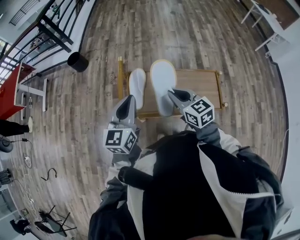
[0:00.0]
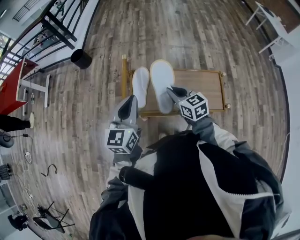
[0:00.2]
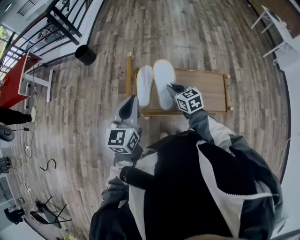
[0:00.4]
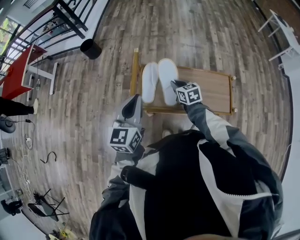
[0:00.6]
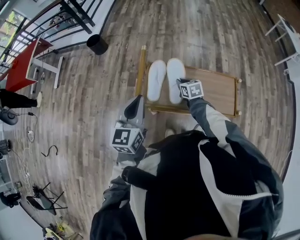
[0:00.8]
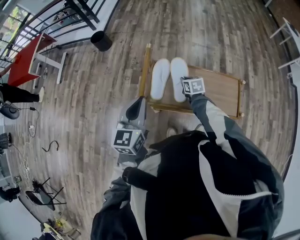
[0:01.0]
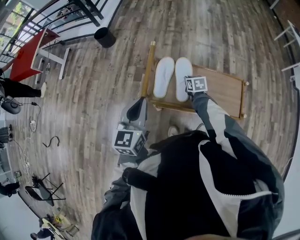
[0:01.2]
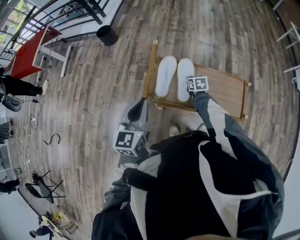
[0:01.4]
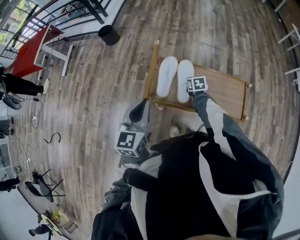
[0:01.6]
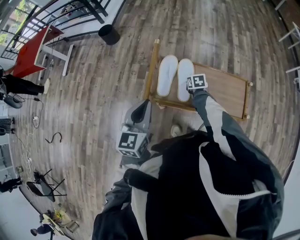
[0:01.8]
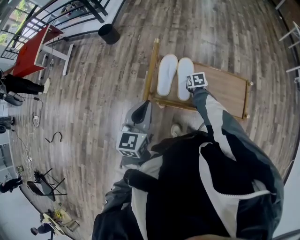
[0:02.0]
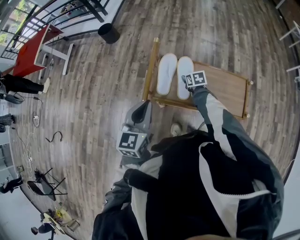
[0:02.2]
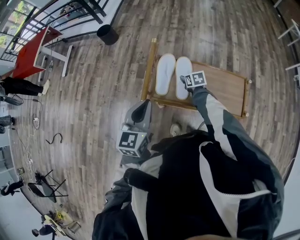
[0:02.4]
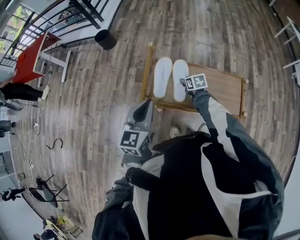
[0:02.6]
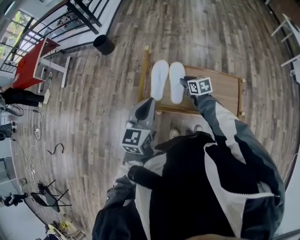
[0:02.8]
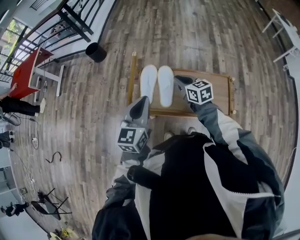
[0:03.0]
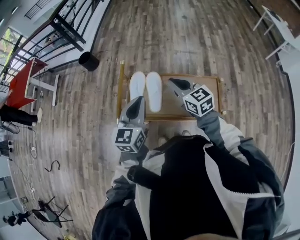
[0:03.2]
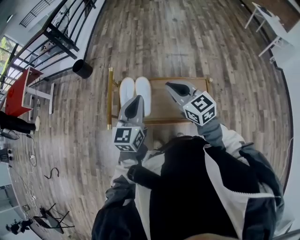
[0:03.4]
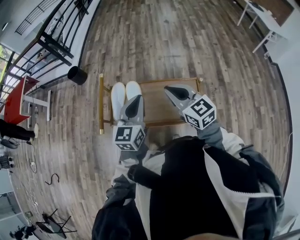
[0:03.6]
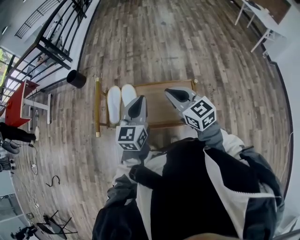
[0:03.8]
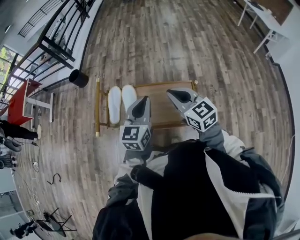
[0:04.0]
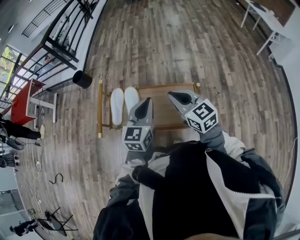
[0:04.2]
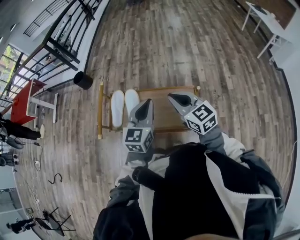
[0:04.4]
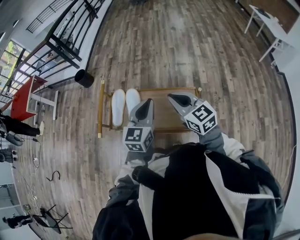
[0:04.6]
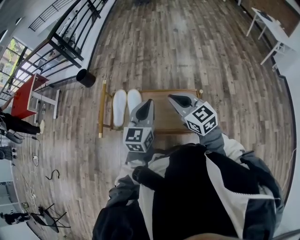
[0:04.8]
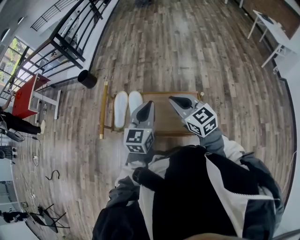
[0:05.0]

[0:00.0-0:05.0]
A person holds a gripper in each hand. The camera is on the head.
0:00.0 to 0:01.6: The right gripper shifts some 30 cm downward and forward, and points its fingers about 30 degrees further downward. The left gripper travels to the left by about 5 cm.
0:01.6 to 0:03.4: The right gripper travels upward by roughly 35 cm, points its fingers approximately 40 degrees further upward, and opens and closes again, while the left gripper goes about 20 cm to the right.
0:03.4 to 0:05.0: The two grippers go approximately 10 cm to the right.

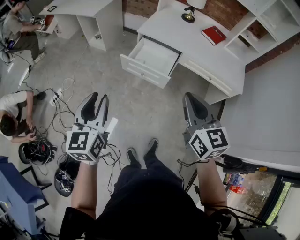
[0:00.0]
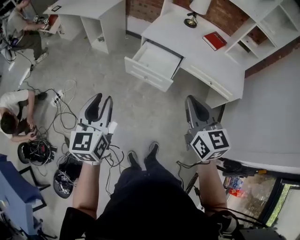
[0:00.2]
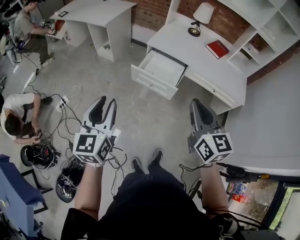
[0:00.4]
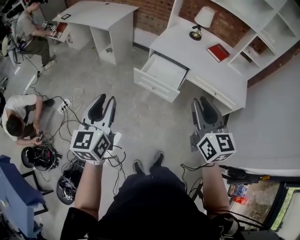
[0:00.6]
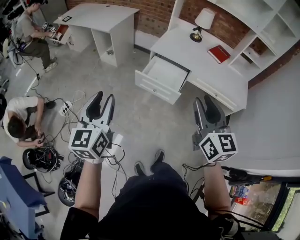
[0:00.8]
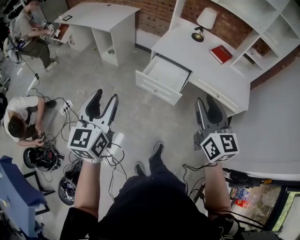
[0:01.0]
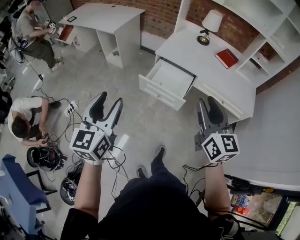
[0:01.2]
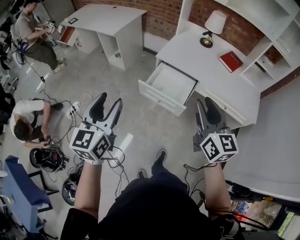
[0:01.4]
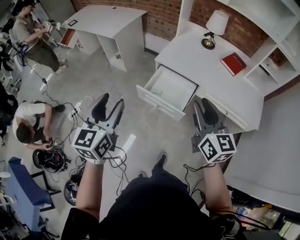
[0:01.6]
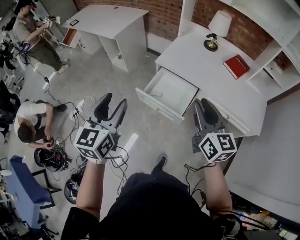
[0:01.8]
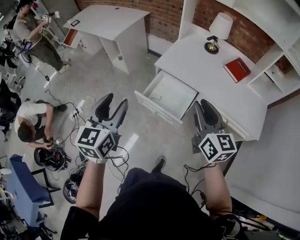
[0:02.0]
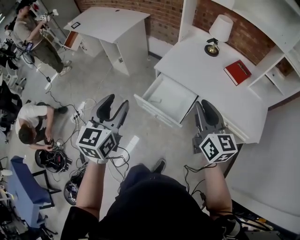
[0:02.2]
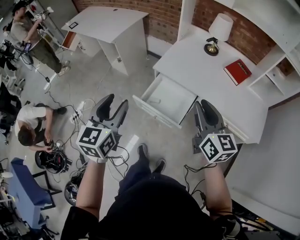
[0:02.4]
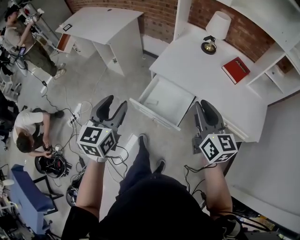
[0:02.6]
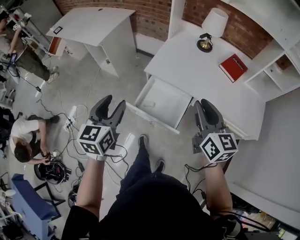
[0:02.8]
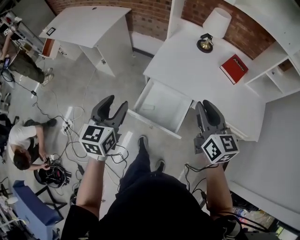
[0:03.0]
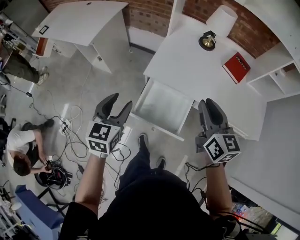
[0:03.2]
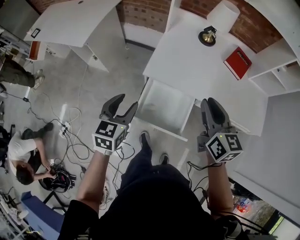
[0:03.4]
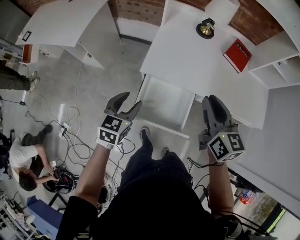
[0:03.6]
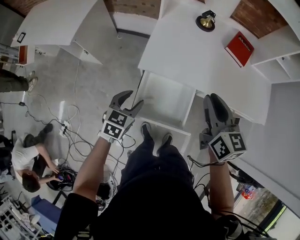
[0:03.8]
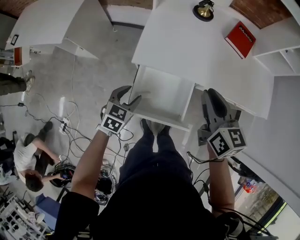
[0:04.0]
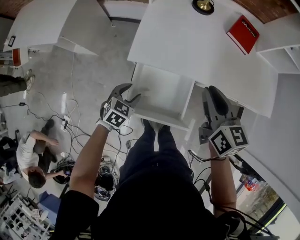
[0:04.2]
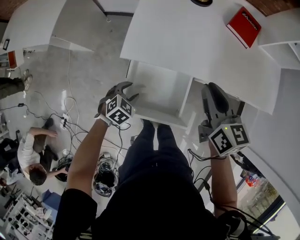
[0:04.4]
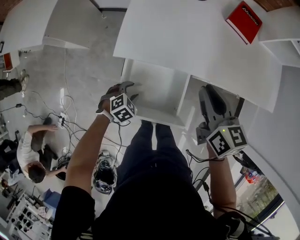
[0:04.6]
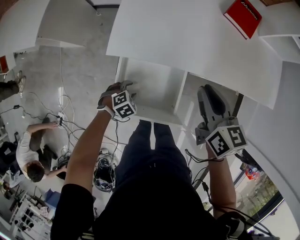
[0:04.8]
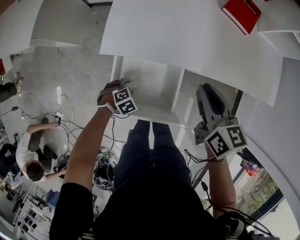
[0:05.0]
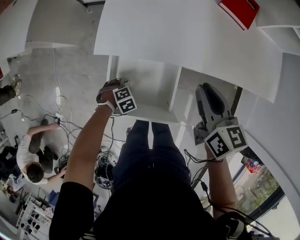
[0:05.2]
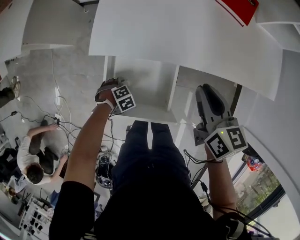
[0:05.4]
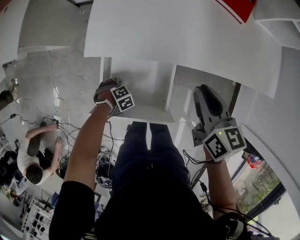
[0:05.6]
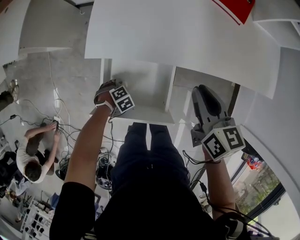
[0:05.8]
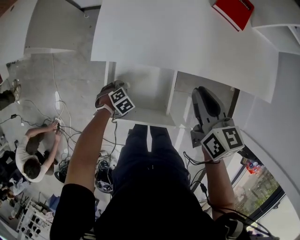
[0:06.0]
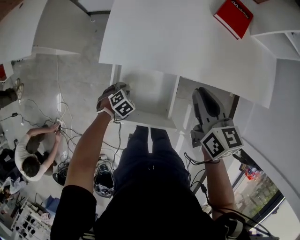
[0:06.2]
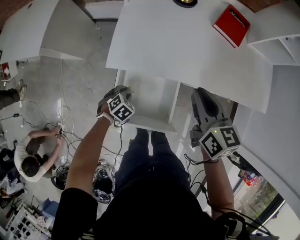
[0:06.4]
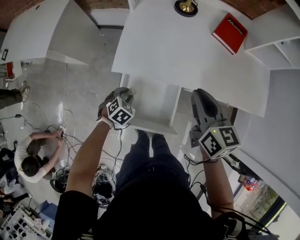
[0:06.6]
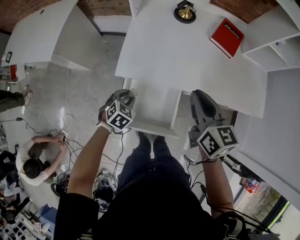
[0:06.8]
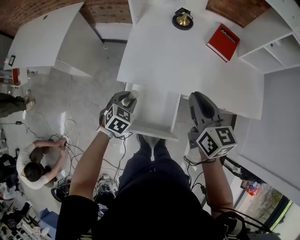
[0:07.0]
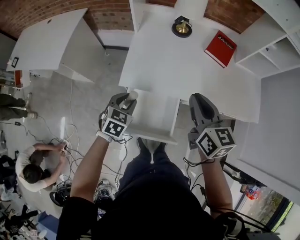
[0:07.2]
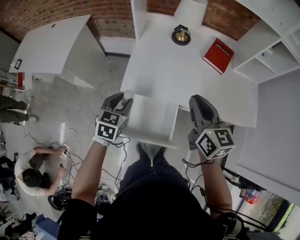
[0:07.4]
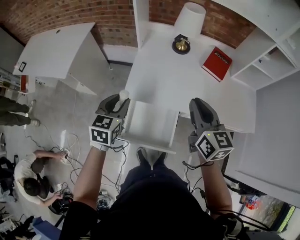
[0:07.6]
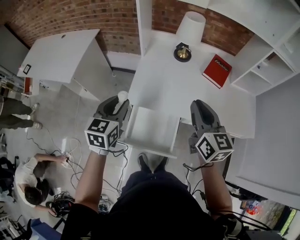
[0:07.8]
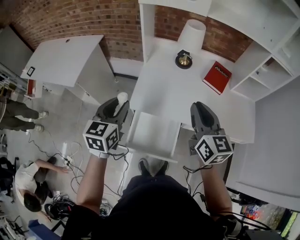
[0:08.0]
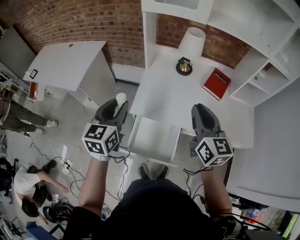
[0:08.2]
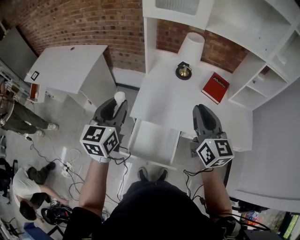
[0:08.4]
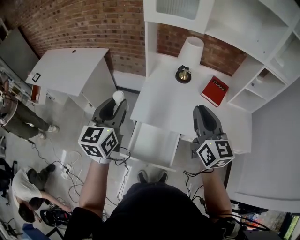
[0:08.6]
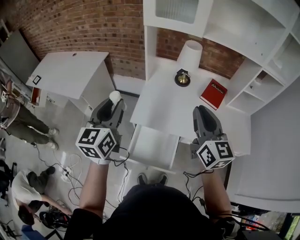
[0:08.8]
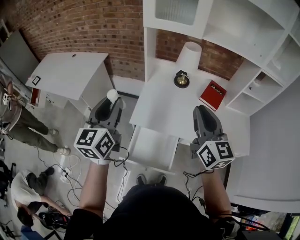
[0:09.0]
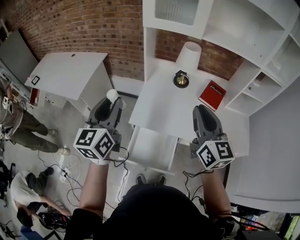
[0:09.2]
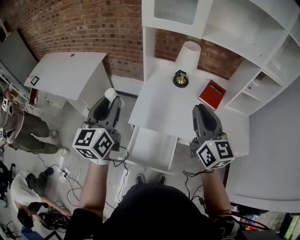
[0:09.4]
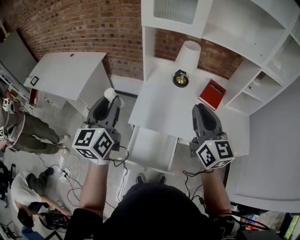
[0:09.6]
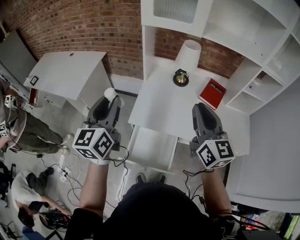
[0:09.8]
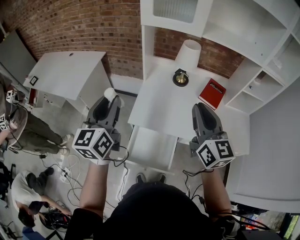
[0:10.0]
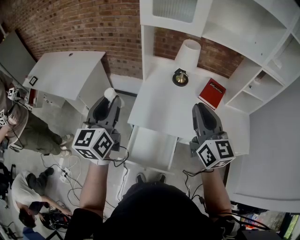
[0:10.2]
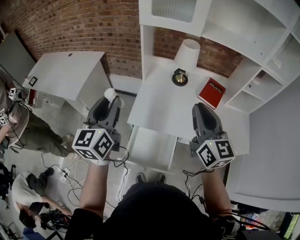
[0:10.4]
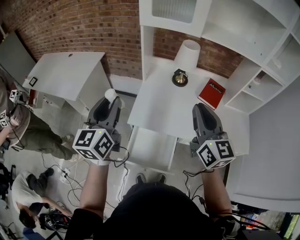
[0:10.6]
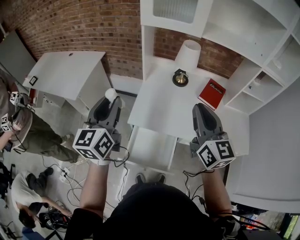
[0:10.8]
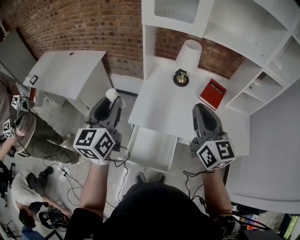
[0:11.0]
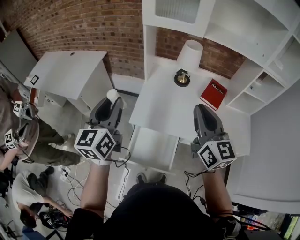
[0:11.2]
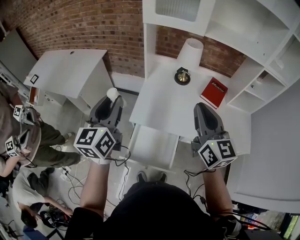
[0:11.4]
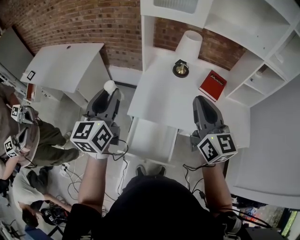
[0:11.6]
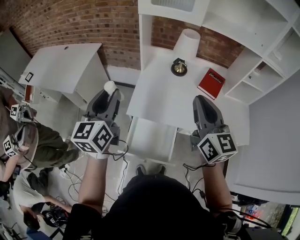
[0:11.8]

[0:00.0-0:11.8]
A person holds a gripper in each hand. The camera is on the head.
0:00.0 to 0:01.4: The right gripper heads forward, covering roughly 10 cm, and opens. The left gripper heads forward and upward, covering about 10 cm, and opens.
0:01.4 to 0:03.0: Both grippers move forward, some 25 cm.
0:03.0 to 0:04.4: The right gripper shifts some 20 cm downward and forward, while the left gripper shifts approximately 35 cm downward and forward, and tips its fingers downward by roughly 40 degrees.
0:04.4 to 0:06.0: The left gripper is displaced downward by about 15 cm, and changes its angle by roughly 20 degrees; the right gripper goes roughly 5 cm downward.
0:06.0 to 0:07.4: The right gripper heads upward, covering about 20 cm. The left gripper travels upward by roughly 35 cm, and angles its fingers upward, by approximately 50 degrees.
0:07.4 to 0:08.8: The right gripper is displaced upward by approximately 15 cm. Meanwhile the left gripper moves upward, approximately 25 cm, and tips its fingers upward by approximately 30 degrees.
0:08.8 to 0:11.8: The grippers make only small movements.

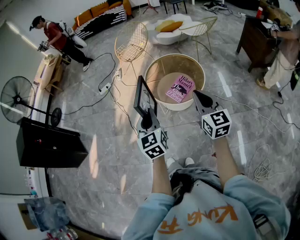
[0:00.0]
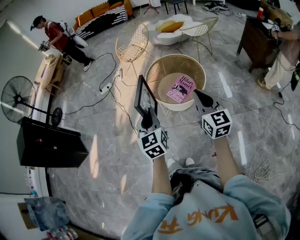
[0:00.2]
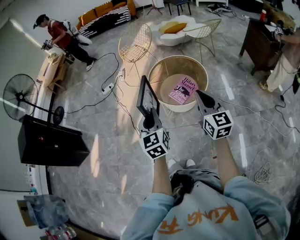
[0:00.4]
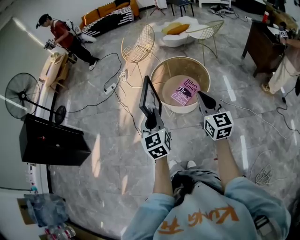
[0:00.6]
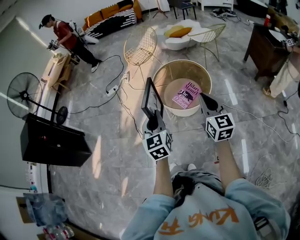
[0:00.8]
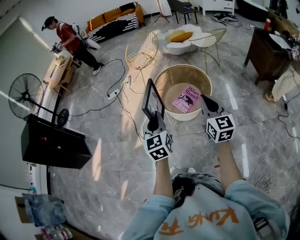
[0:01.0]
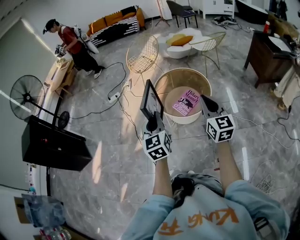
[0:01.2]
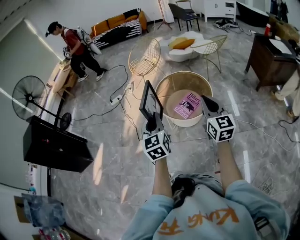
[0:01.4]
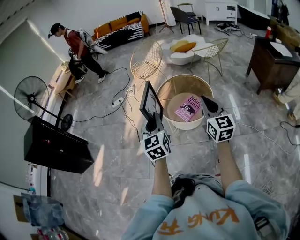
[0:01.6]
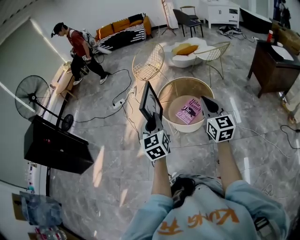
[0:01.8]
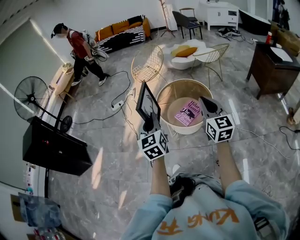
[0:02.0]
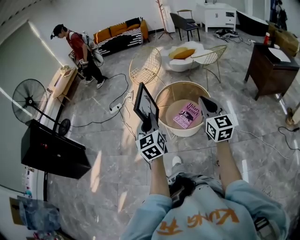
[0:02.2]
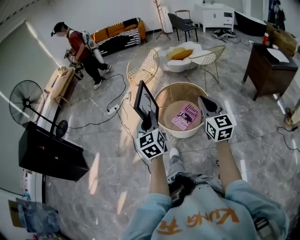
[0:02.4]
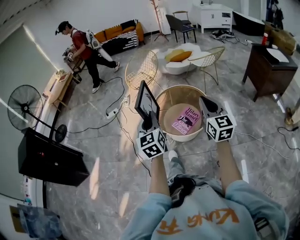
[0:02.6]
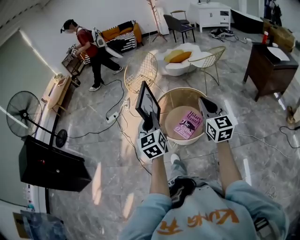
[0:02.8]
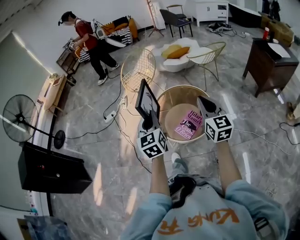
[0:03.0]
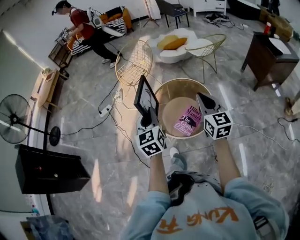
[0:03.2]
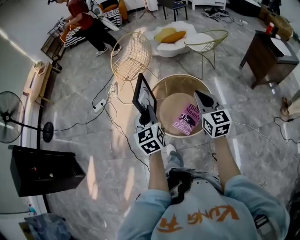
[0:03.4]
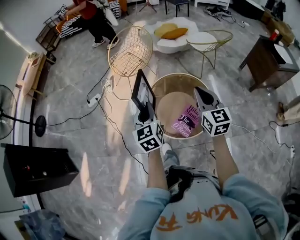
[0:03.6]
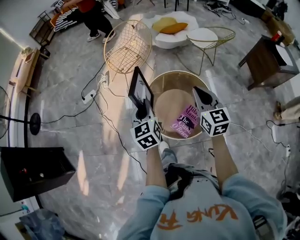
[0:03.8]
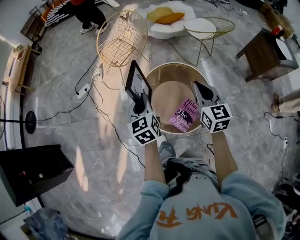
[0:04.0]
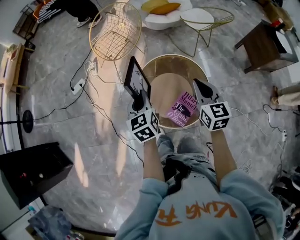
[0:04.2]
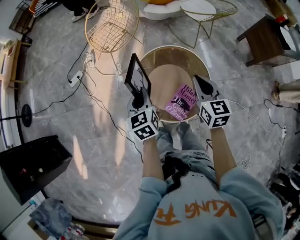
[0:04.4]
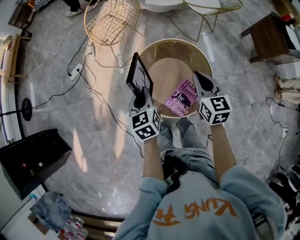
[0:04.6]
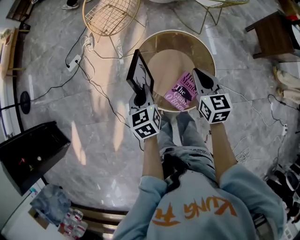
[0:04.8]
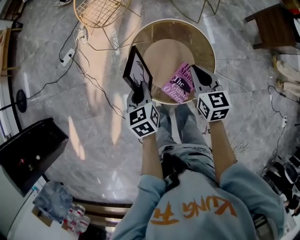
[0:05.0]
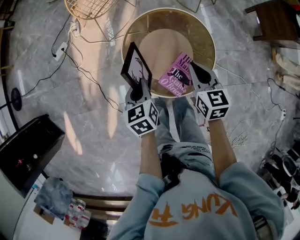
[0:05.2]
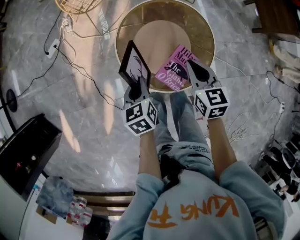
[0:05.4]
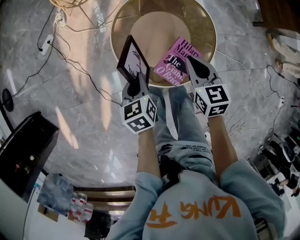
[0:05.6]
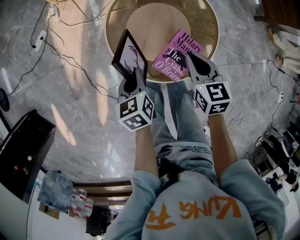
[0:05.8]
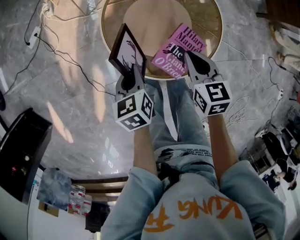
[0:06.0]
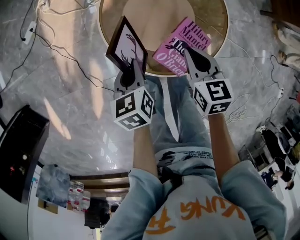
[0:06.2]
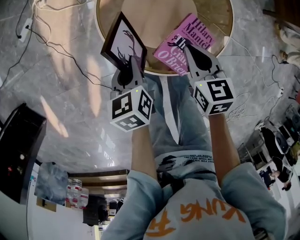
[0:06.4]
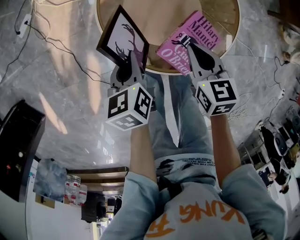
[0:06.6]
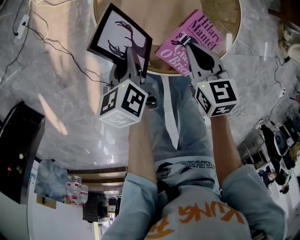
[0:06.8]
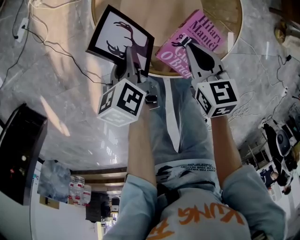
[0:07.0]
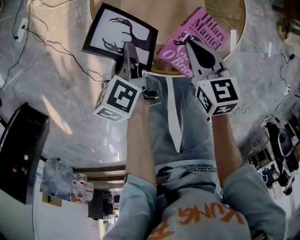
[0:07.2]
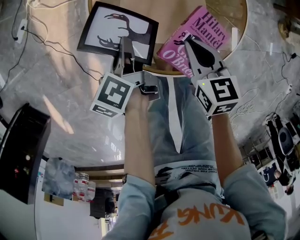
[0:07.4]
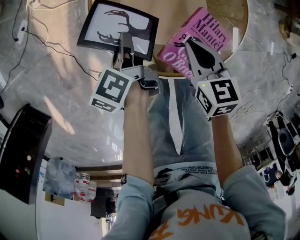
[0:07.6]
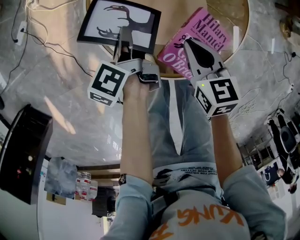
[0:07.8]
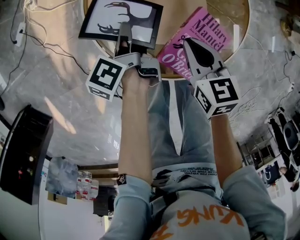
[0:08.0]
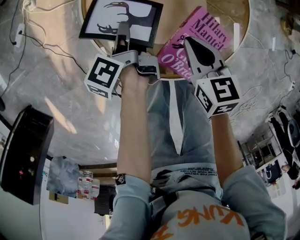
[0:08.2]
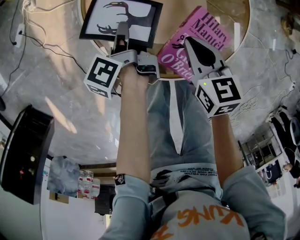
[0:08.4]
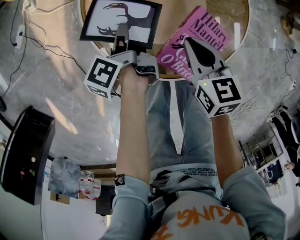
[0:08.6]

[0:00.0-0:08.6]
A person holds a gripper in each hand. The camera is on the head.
0:00.0 to 0:01.4: The grippers move only a little.
0:01.4 to 0:02.8: Both grippers travel together forward, about 15 cm.
0:02.8 to 0:04.4: The two grippers go approximately 35 cm forward and downward. The right gripper changes its angle by roughly 20 degrees. The left gripper turns by approximately 20 degrees.
0:04.4 to 0:05.8: Both grippers travel together downward, approximately 20 cm. The left gripper changes its angle by some 20 degrees. The right gripper rotates some 20 degrees.
0:05.8 to 0:07.2: Both grippers travel together downward, roughly 15 cm. The left gripper turns by some 30 degrees.
0:07.2 to 0:08.6: The left gripper is displaced forward and downward by roughly 10 cm, and changes its angle by some 30 degrees.
